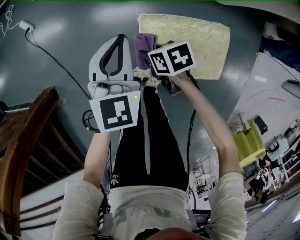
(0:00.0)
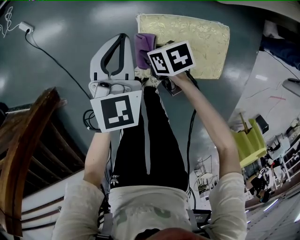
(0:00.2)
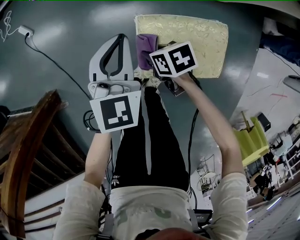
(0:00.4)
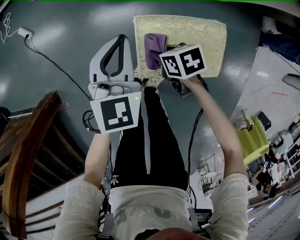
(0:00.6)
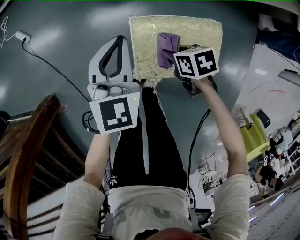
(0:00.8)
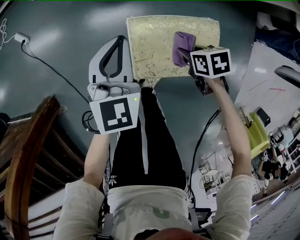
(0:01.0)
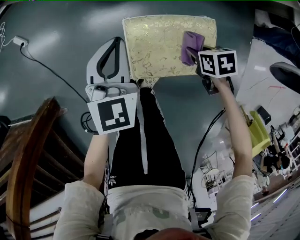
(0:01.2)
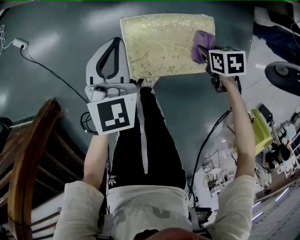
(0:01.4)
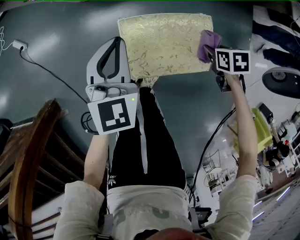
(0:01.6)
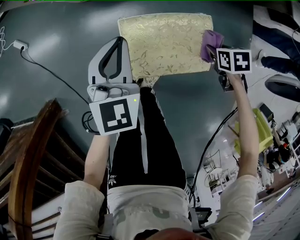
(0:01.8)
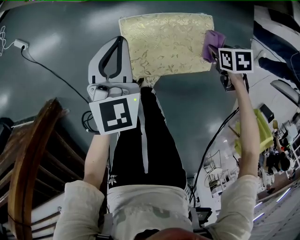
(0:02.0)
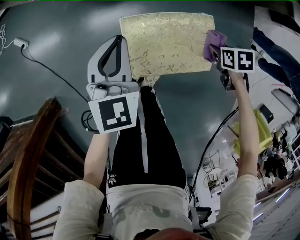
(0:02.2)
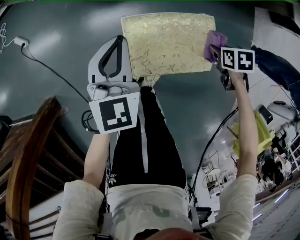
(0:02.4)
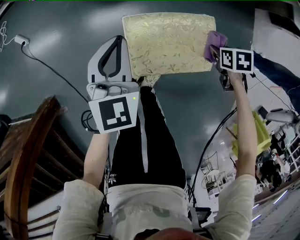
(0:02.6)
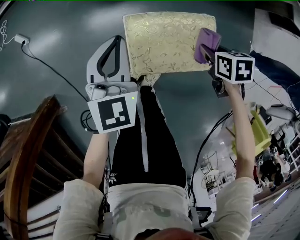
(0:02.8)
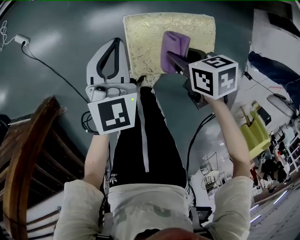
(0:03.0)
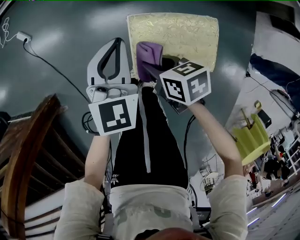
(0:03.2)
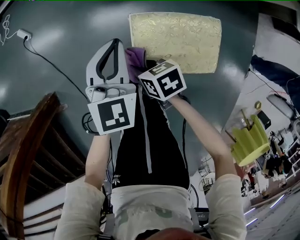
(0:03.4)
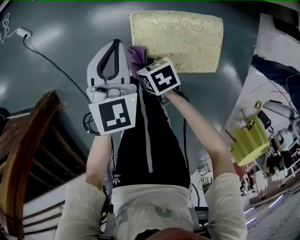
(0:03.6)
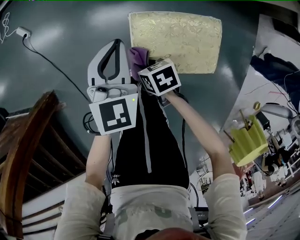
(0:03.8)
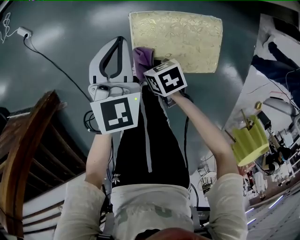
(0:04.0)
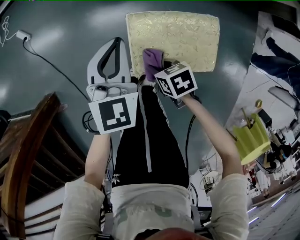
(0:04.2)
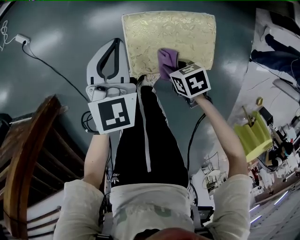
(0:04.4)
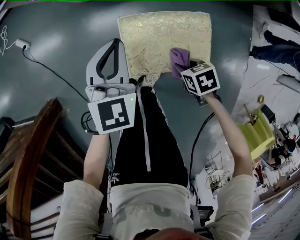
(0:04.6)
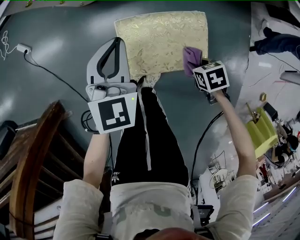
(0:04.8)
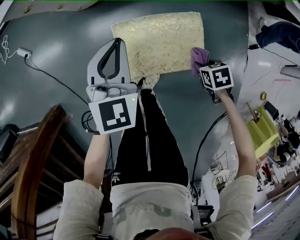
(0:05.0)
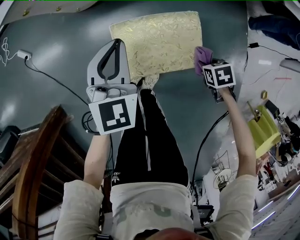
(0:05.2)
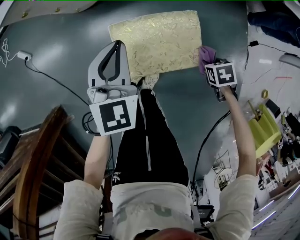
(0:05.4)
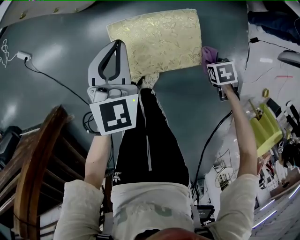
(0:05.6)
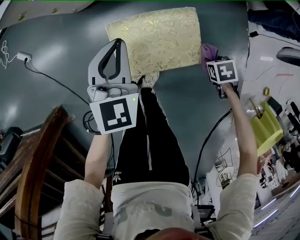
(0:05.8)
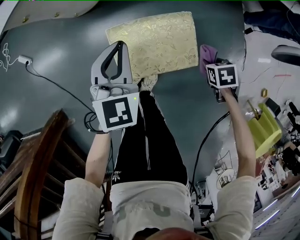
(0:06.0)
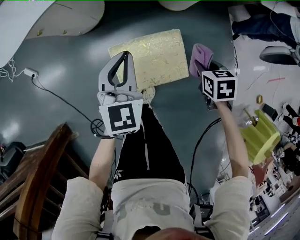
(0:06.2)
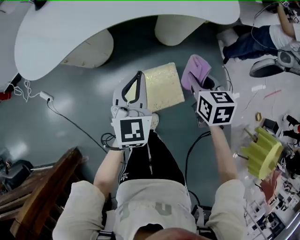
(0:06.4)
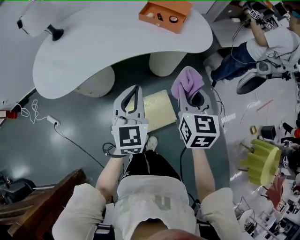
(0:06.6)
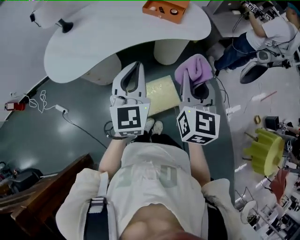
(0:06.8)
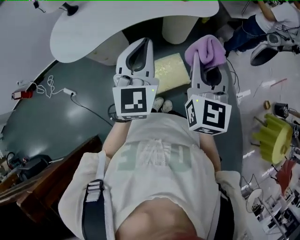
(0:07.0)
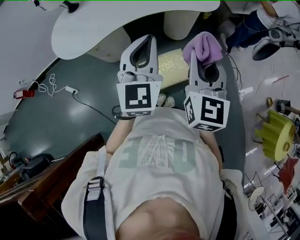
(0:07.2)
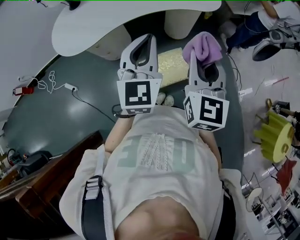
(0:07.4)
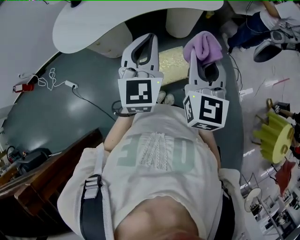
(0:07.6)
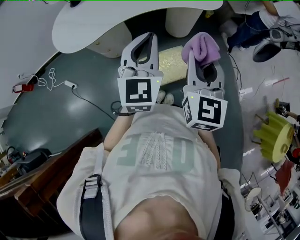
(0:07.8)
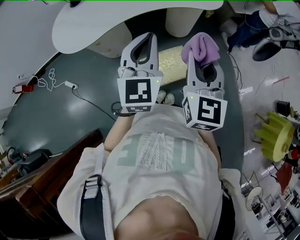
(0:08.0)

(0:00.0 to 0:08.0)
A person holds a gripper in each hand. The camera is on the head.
0:00.0 - 0:01.6: The left gripper shifts by about 5 cm. The right gripper ends up approximately 30 cm from where it was, and rotates approximately 30 degrees.
0:01.6 - 0:03.2: The right gripper changes place by about 30 cm, and points its fingers some 30 degrees further upward.
0:03.2 - 0:04.8: The right gripper moves roughly 25 cm, and swivels roughly 30 degrees.
0:04.8 - 0:06.4: The right gripper heads upward, covering roughly 35 cm, and rotates some 50 degrees. Meanwhile the left gripper travels upward by roughly 20 cm.
0:06.4 - 0:08.0: The left gripper heads upward, covering about 25 cm; the right gripper is displaced upward and backward by some 35 cm, and tilts its fingers approximately 30 degrees upward.

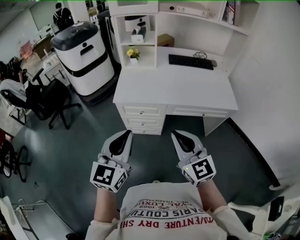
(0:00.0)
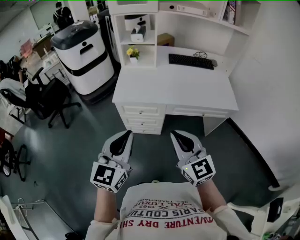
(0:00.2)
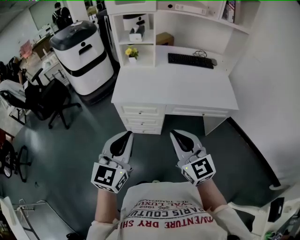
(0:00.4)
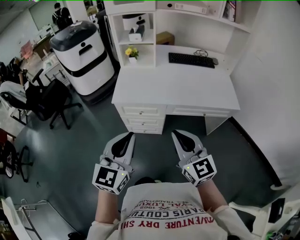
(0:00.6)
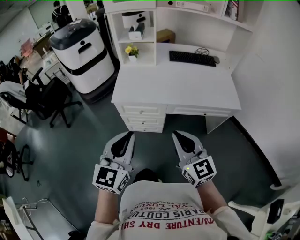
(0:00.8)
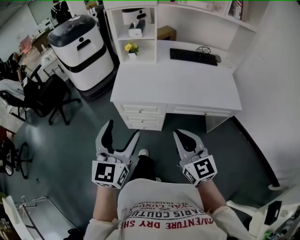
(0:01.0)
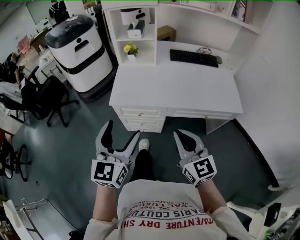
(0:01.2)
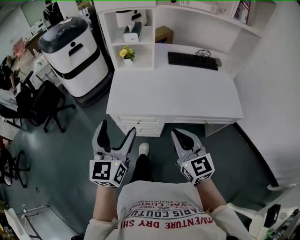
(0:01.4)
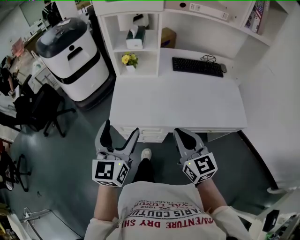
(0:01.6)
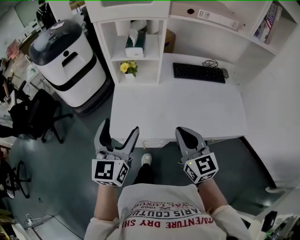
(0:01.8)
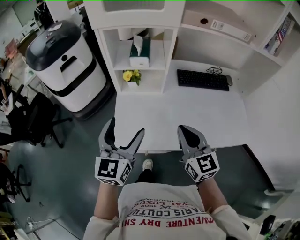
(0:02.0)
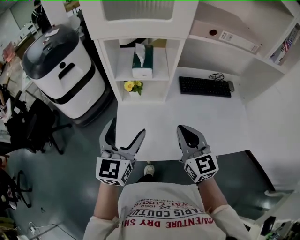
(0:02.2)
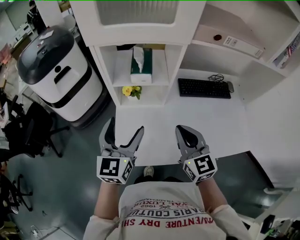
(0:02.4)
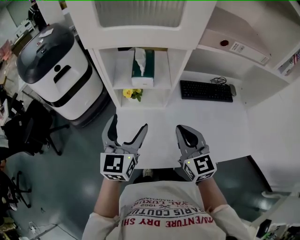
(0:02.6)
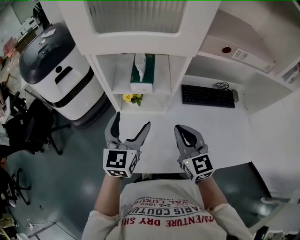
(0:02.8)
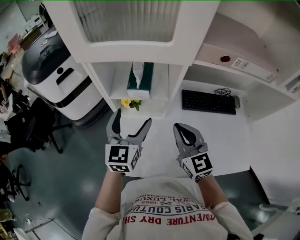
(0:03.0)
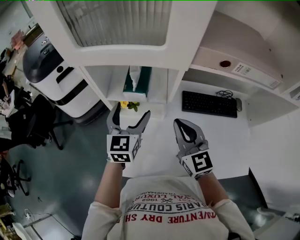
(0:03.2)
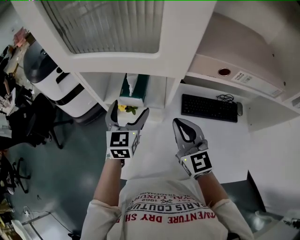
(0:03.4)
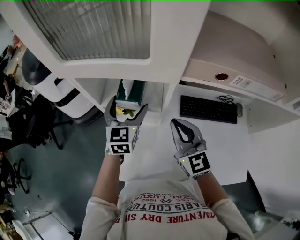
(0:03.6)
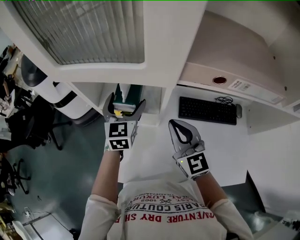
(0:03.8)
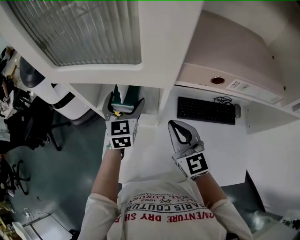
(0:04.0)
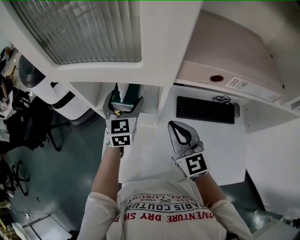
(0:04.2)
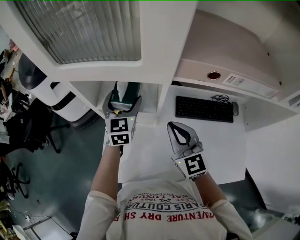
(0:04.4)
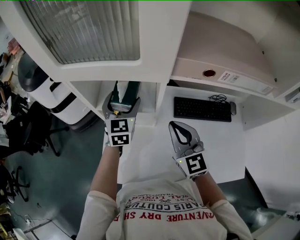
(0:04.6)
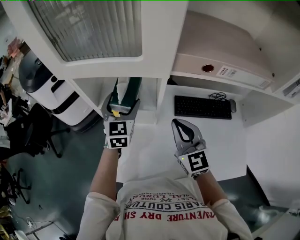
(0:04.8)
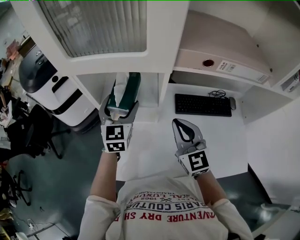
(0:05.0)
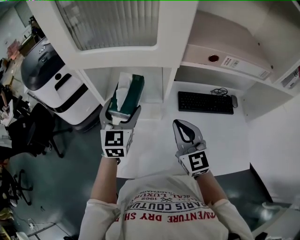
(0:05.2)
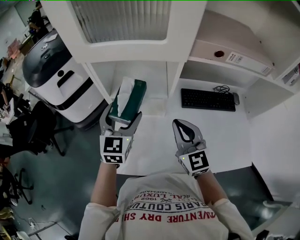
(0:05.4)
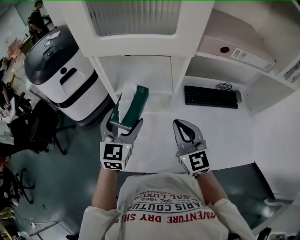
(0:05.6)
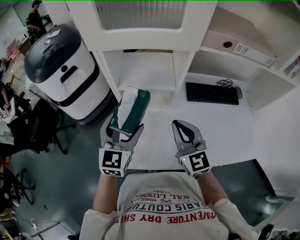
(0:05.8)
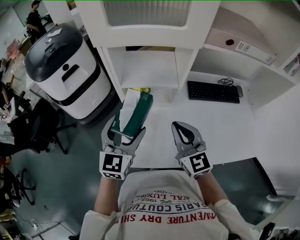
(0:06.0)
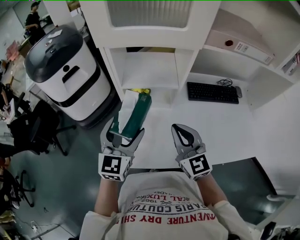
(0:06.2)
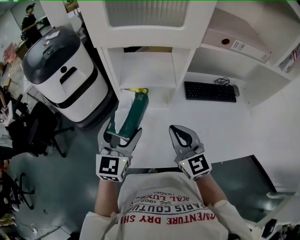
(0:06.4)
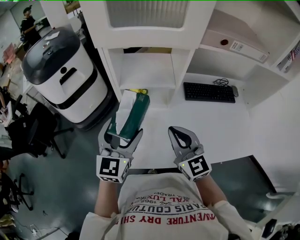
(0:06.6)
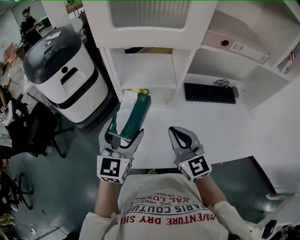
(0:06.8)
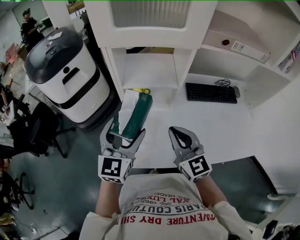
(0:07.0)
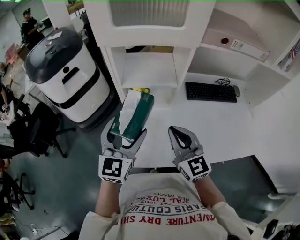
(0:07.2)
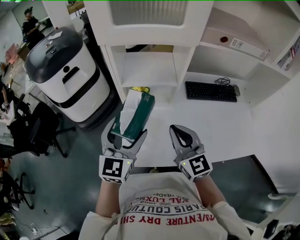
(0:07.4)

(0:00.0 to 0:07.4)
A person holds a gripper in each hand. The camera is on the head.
0:00.0 - 0:01.4: Both grippers travel together forward, about 15 cm. The left gripper opens up.
0:01.4 - 0:03.0: The two grippers travel together, forward, approximately 40 cm.
0:03.0 - 0:04.4: The left gripper heads forward, covering some 15 cm, while the right gripper is displaced forward by some 5 cm.
0:04.4 - 0:06.0: The right gripper goes about 15 cm backward and to the left. The left gripper travels backward and to the left by about 25 cm.
0:06.0 - 0:07.4: The grippers stay close to where they were, moving slightly.

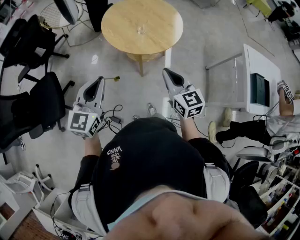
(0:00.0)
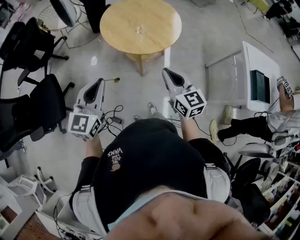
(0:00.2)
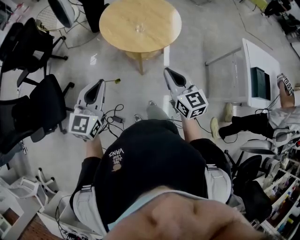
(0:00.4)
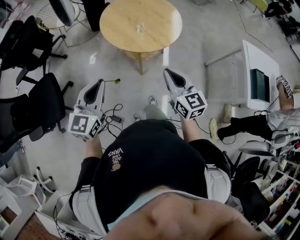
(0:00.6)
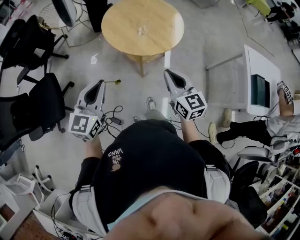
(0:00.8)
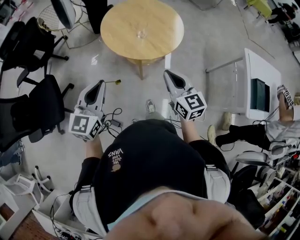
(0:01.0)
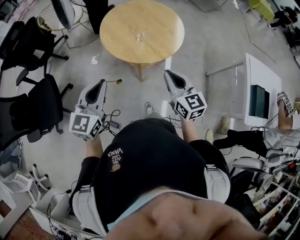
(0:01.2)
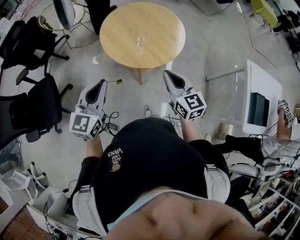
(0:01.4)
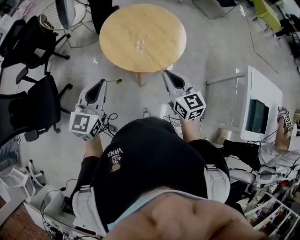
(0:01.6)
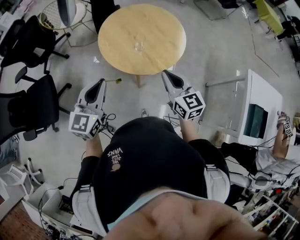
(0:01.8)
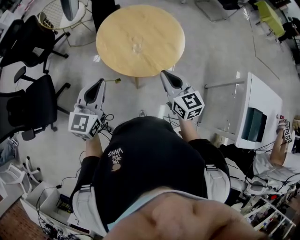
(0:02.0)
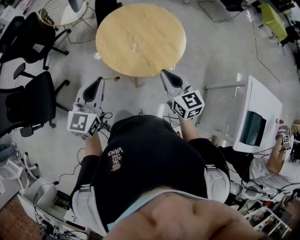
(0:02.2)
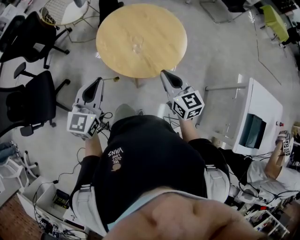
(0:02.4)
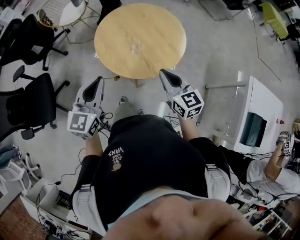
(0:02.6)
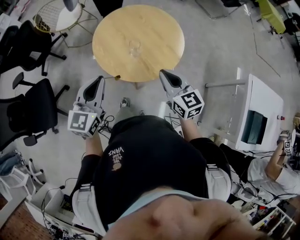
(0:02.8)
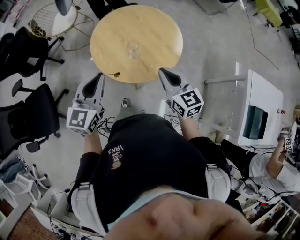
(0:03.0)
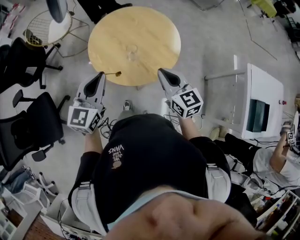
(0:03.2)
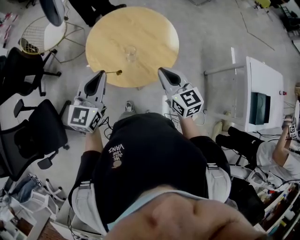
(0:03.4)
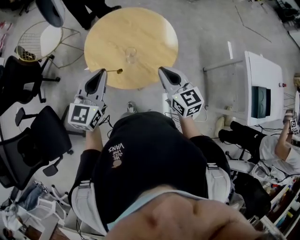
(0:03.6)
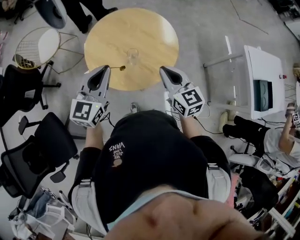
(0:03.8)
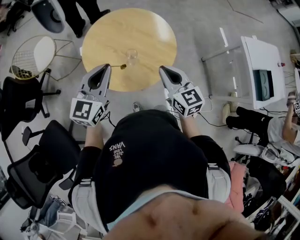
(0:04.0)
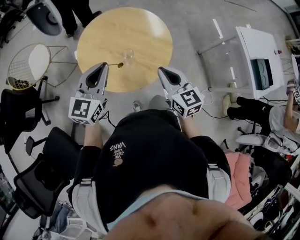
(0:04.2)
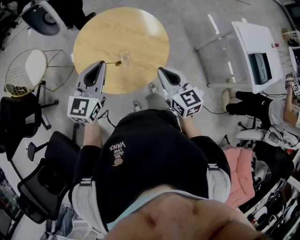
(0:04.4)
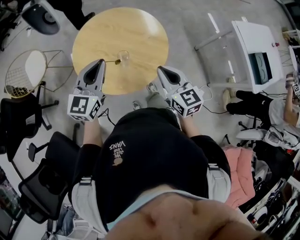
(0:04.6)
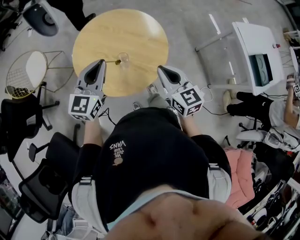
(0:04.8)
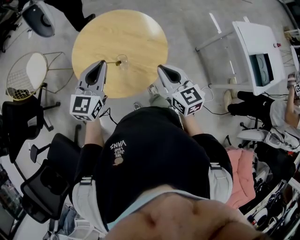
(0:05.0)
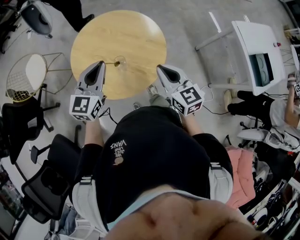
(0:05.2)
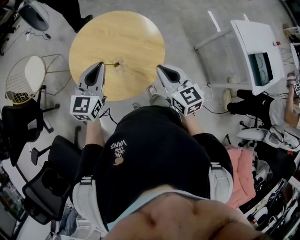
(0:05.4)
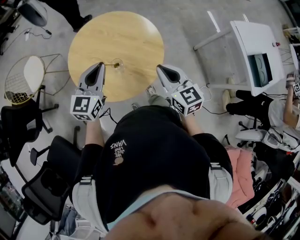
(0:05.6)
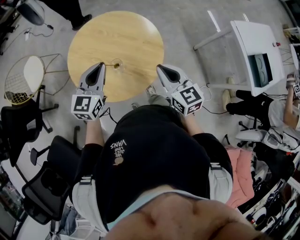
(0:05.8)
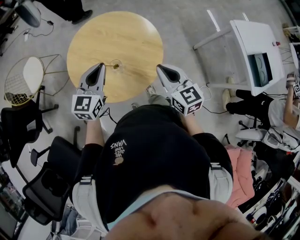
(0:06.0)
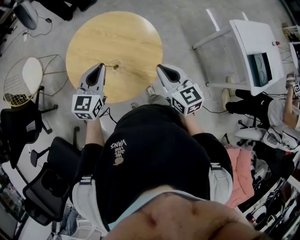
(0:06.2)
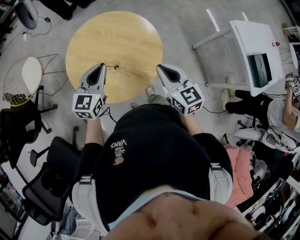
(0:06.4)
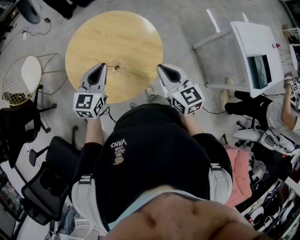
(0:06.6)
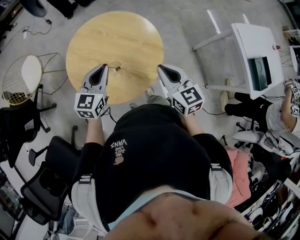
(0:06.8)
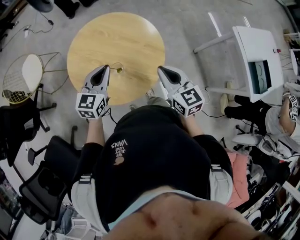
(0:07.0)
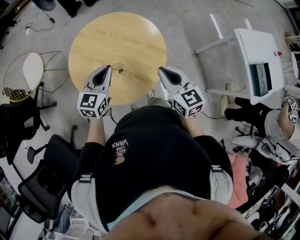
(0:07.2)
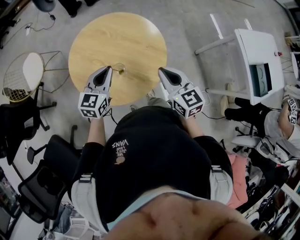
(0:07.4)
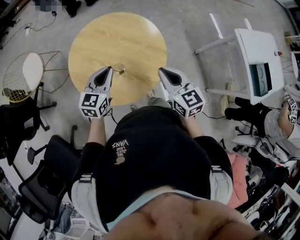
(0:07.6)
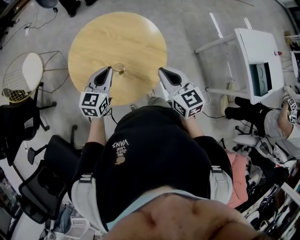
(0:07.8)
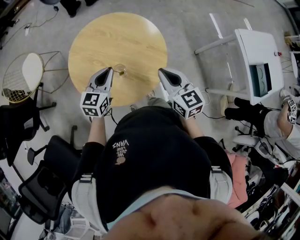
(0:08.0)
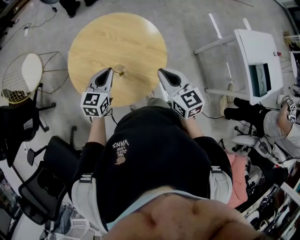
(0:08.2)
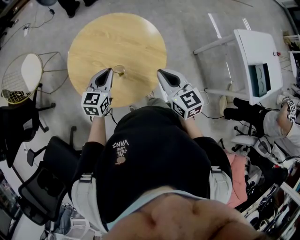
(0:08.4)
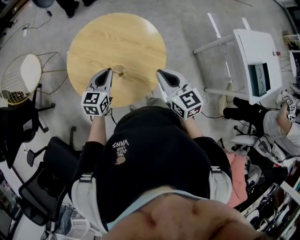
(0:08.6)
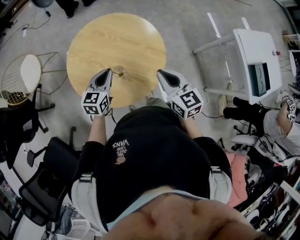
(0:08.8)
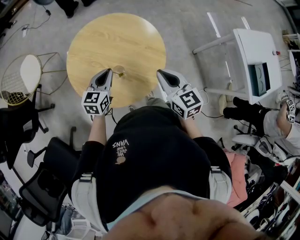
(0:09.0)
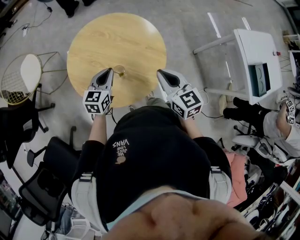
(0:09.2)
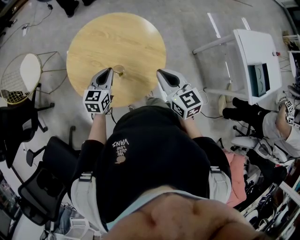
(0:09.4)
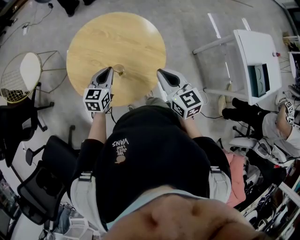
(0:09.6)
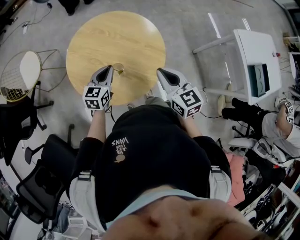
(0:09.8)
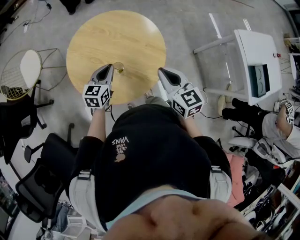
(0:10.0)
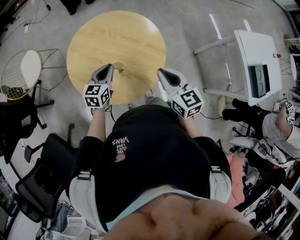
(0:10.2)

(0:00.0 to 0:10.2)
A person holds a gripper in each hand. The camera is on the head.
0:00.0 - 0:01.4: The left gripper shifts about 10 cm forward and to the right, while the right gripper travels forward by approximately 10 cm.
0:01.4 - 0:03.0: The grippers both shift forward by about 15 cm.
0:03.0 - 0:04.4: The left gripper moves some 15 cm, and turns by about 30 degrees. Meanwhile the right gripper swivels approximately 30 degrees.
0:04.4 - 0:05.8: The grippers both shift forward by approximately 5 cm.
0:05.8 - 0:07.2: The left gripper goes some 5 cm downward.
0:07.2 - 0:08.8: The left gripper shifts about 5 cm downward.
0:08.8 - 0:10.2: The grippers move only a little.
